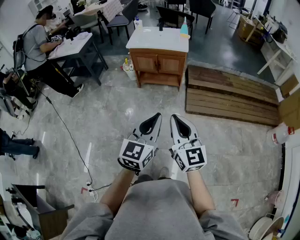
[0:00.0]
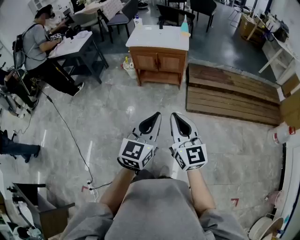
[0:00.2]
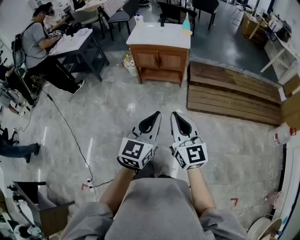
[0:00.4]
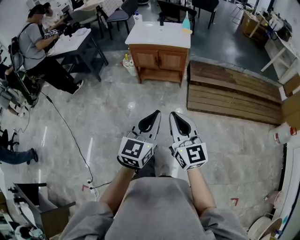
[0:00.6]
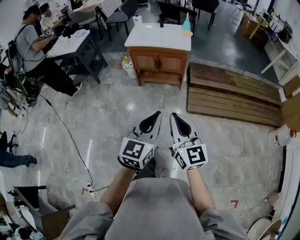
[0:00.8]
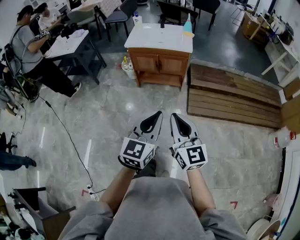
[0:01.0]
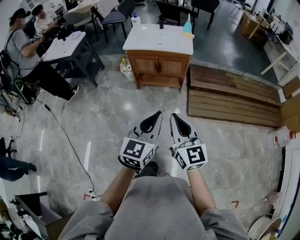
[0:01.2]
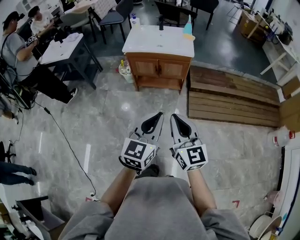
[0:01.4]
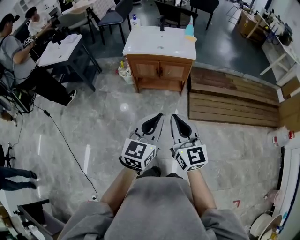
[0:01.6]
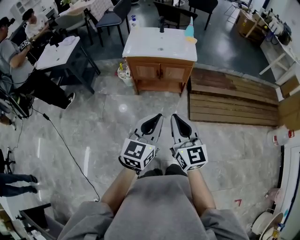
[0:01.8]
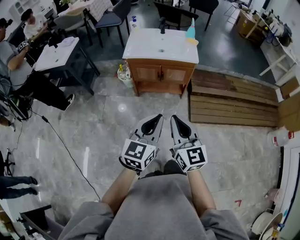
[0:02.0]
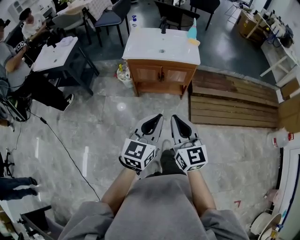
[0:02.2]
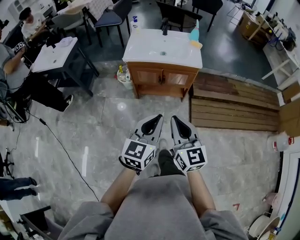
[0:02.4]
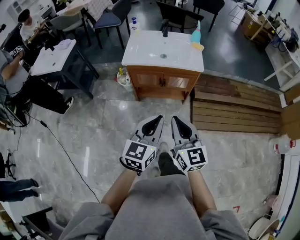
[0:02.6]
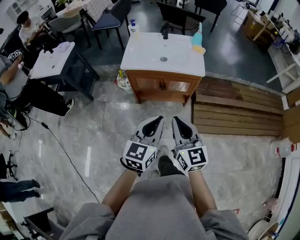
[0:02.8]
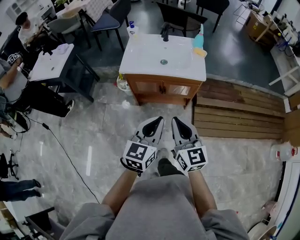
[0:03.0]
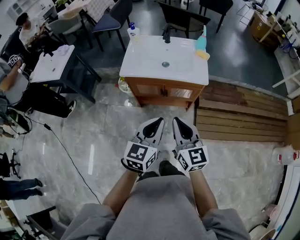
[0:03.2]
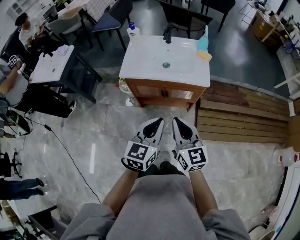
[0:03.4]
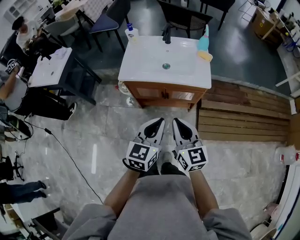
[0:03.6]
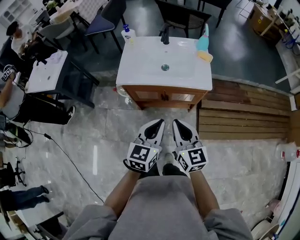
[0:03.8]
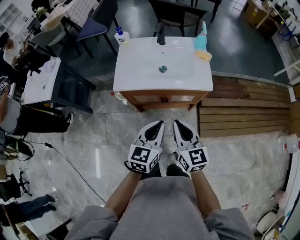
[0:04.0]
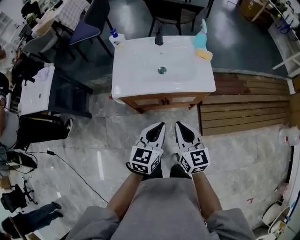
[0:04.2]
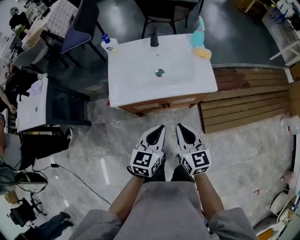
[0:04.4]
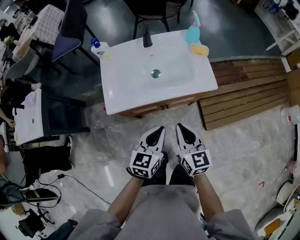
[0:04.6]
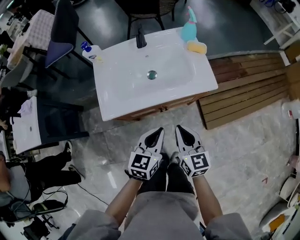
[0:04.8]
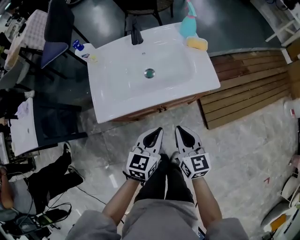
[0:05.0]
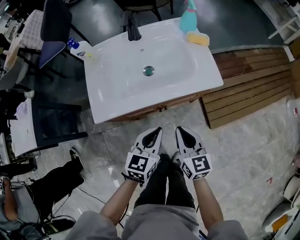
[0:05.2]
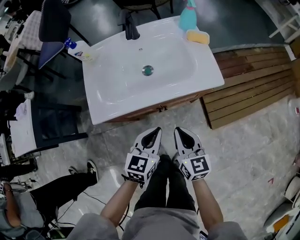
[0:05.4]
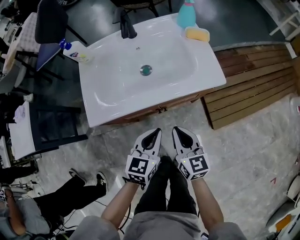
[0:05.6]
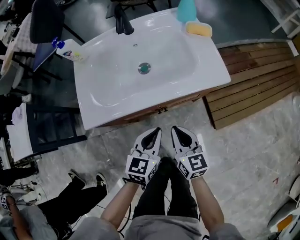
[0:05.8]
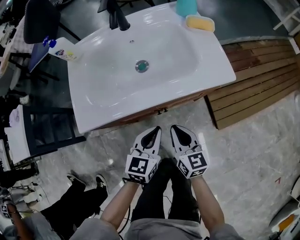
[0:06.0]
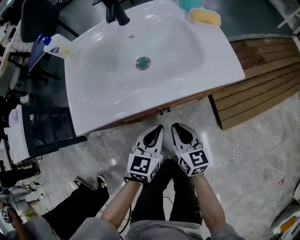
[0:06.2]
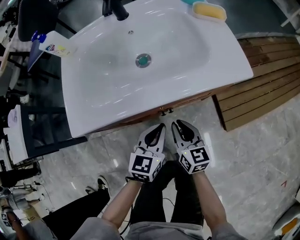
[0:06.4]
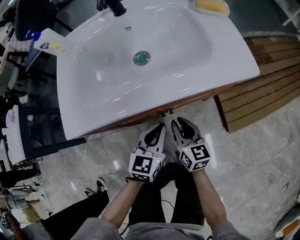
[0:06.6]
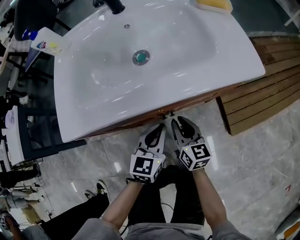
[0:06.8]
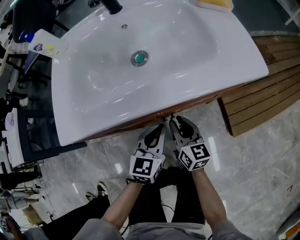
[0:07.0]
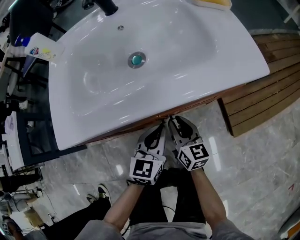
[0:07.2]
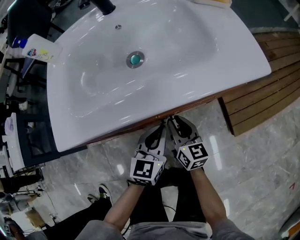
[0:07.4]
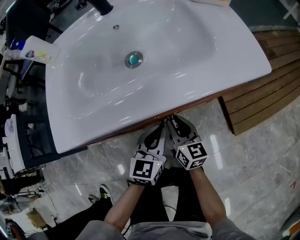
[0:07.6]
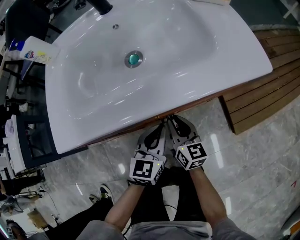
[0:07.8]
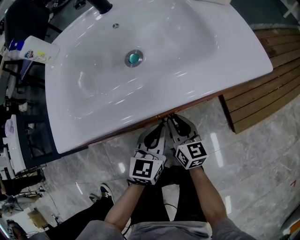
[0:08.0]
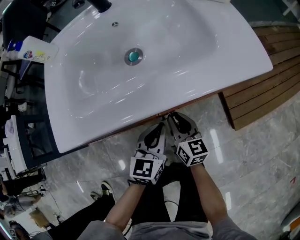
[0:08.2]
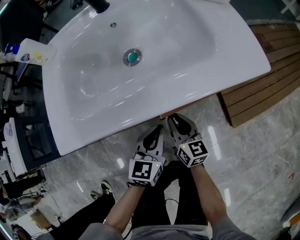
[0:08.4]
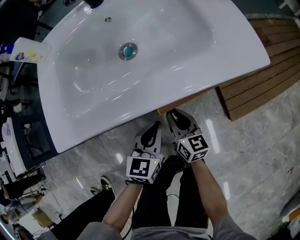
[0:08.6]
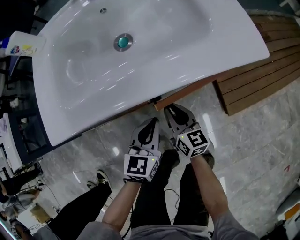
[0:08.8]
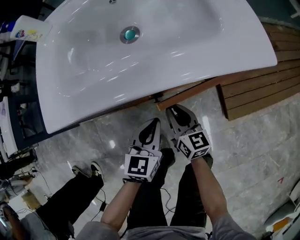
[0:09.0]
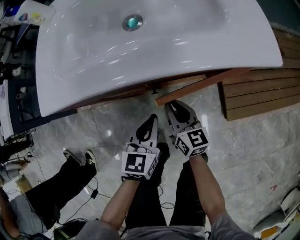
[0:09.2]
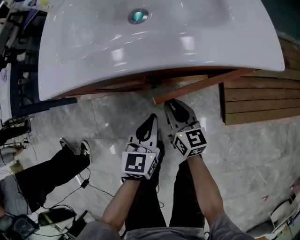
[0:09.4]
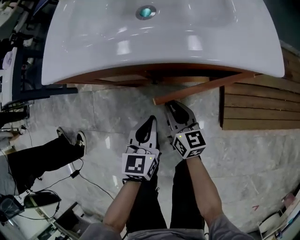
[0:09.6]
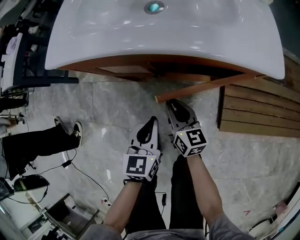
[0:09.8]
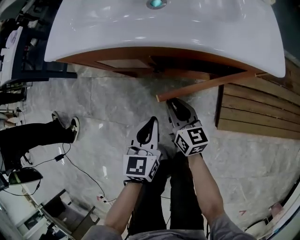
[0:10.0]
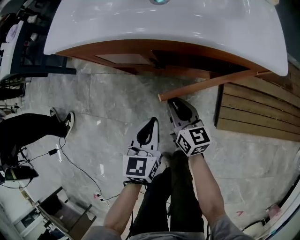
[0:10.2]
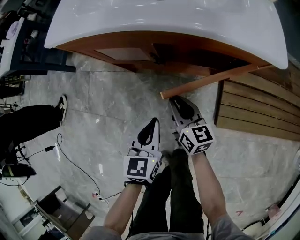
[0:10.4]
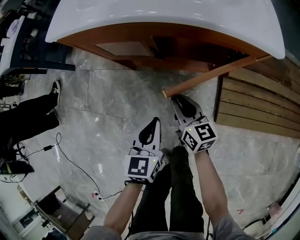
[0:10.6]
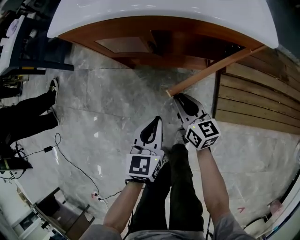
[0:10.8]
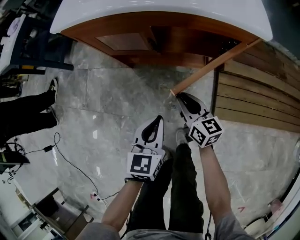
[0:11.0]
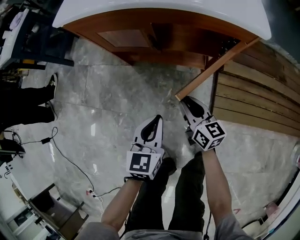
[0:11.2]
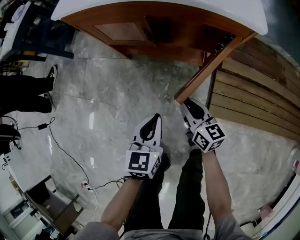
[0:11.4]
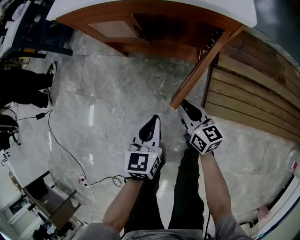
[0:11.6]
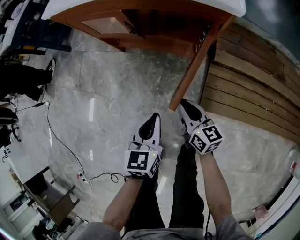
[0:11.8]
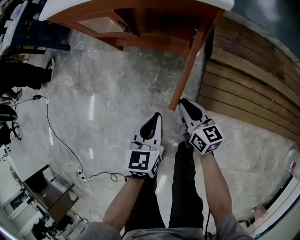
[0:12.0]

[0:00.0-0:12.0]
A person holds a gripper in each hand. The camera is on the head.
0:00.0 to 0:01.6: The grippers both shift forward by about 20 cm.
0:01.6 to 0:03.0: Both grippers travel together forward, some 25 cm.
0:03.0 to 0:04.4: The two grippers go roughly 25 cm forward and downward.
0:04.4 to 0:06.0: The grippers both shift downward by some 25 cm.
0:06.0 to 0:07.6: The left gripper is displaced downward by approximately 15 cm. Meanwhile the right gripper heads downward and forward, covering approximately 20 cm, and opens its fingers.
0:07.6 to 0:09.0: The grippers stay close to where they were, moving slightly.
0:09.0 to 0:10.4: The right gripper shifts by about 10 cm, and changes its angle by approximately 20 degrees. Meanwhile the left gripper ends up about 15 cm from where it was, and changes its angle by some 30 degrees.
0:10.4 to 0:12.0: Both grippers move backward and to the right, about 20 cm.

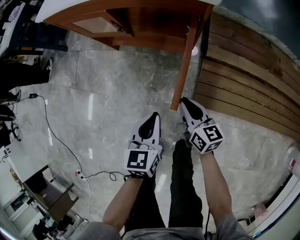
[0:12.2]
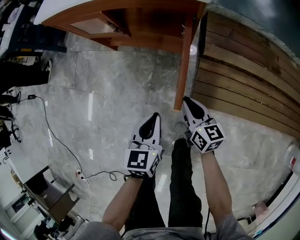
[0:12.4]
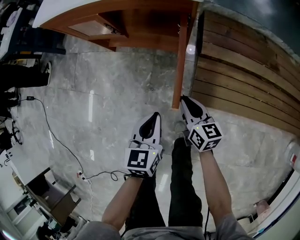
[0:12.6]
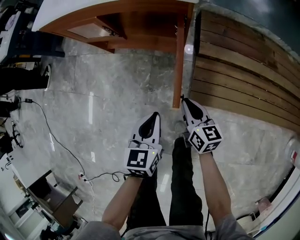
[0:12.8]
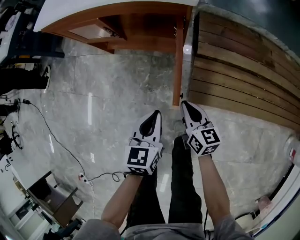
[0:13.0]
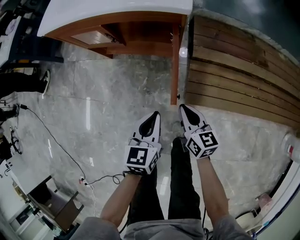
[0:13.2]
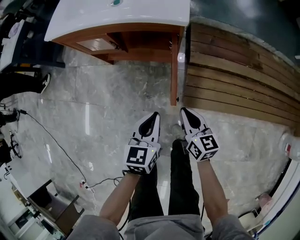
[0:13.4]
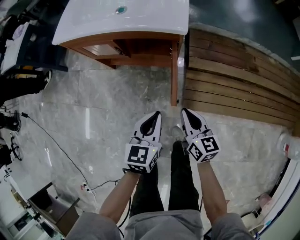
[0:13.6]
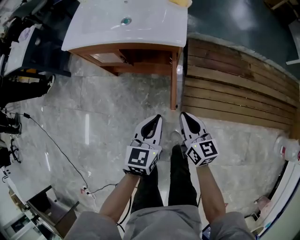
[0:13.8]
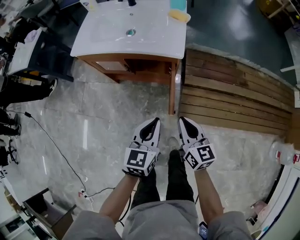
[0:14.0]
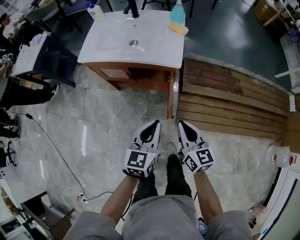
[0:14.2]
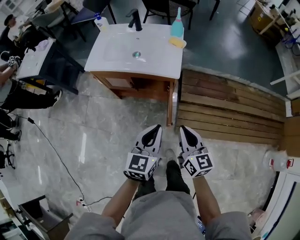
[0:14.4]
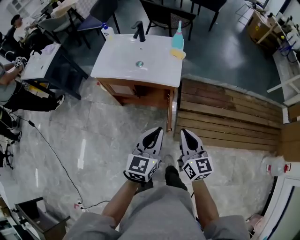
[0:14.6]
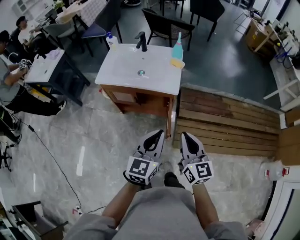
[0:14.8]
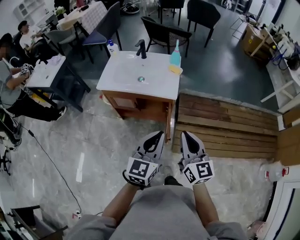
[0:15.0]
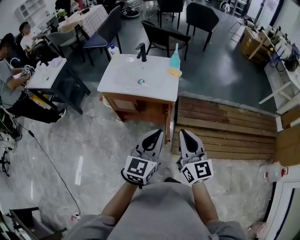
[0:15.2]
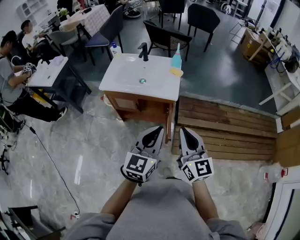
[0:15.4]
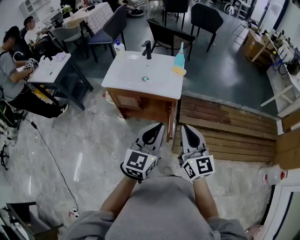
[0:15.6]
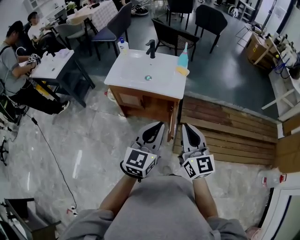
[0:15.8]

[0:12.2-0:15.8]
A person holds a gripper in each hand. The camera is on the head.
0:12.2 to 0:14.0: The two grippers go some 25 cm upward.
0:14.0 to 0:15.8: Both grippers move upward, some 30 cm. The left gripper turns by roughly 20 degrees. Meanwhile the right gripper rotates approximately 30 degrees.

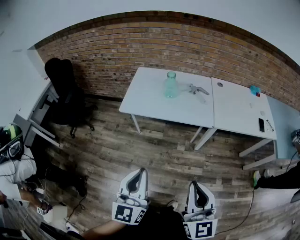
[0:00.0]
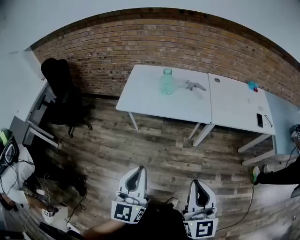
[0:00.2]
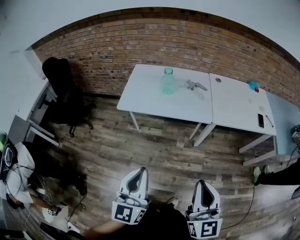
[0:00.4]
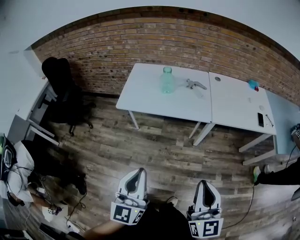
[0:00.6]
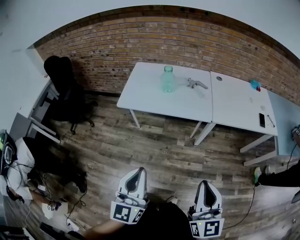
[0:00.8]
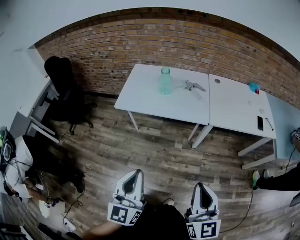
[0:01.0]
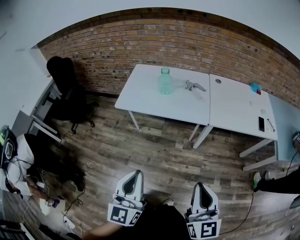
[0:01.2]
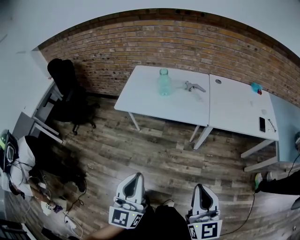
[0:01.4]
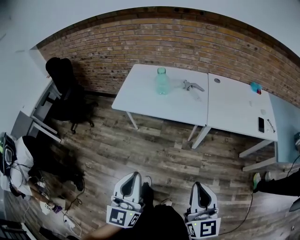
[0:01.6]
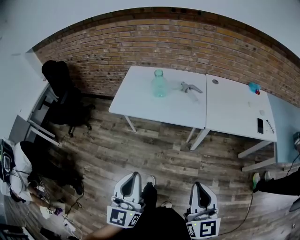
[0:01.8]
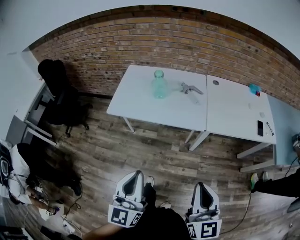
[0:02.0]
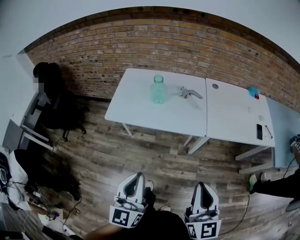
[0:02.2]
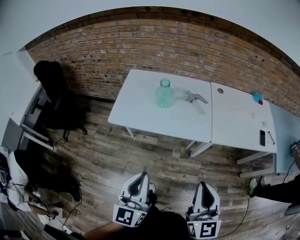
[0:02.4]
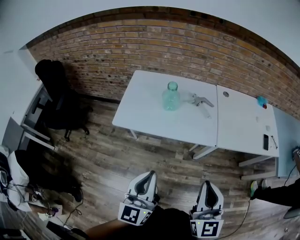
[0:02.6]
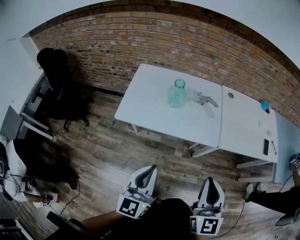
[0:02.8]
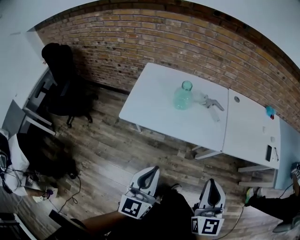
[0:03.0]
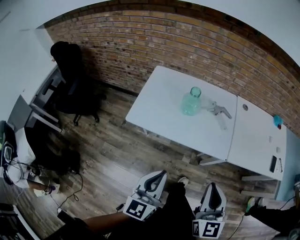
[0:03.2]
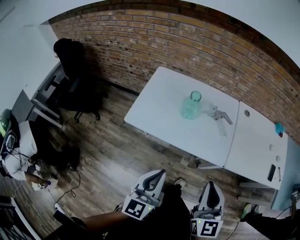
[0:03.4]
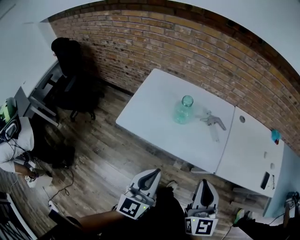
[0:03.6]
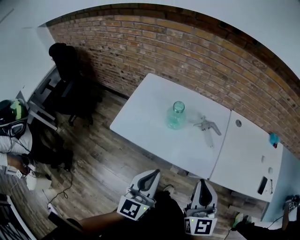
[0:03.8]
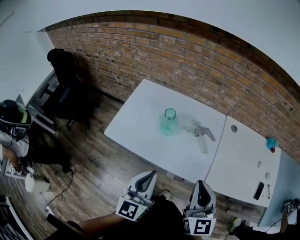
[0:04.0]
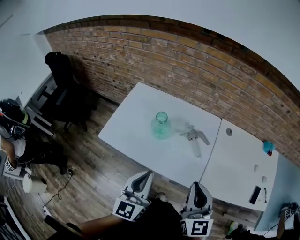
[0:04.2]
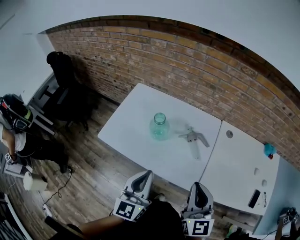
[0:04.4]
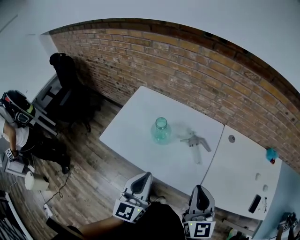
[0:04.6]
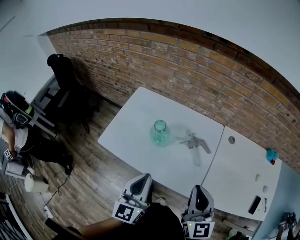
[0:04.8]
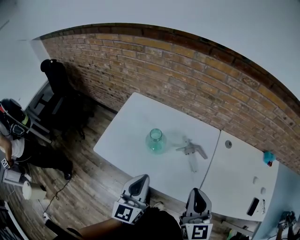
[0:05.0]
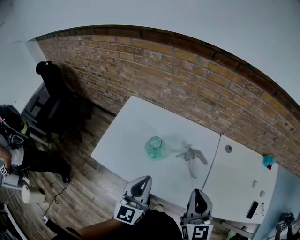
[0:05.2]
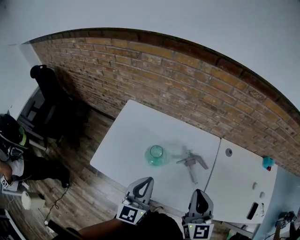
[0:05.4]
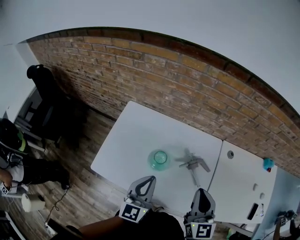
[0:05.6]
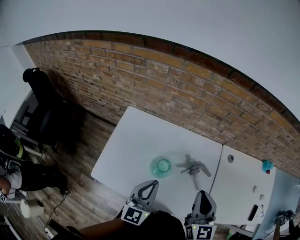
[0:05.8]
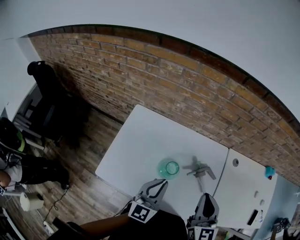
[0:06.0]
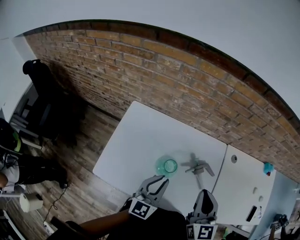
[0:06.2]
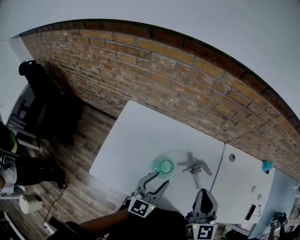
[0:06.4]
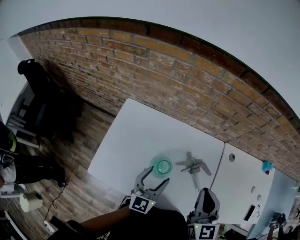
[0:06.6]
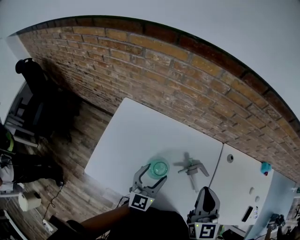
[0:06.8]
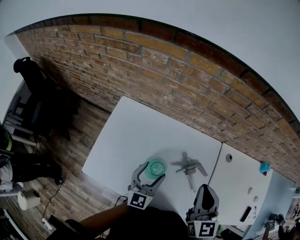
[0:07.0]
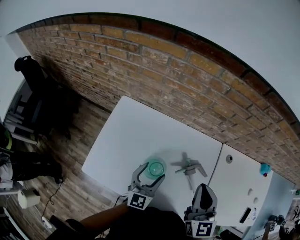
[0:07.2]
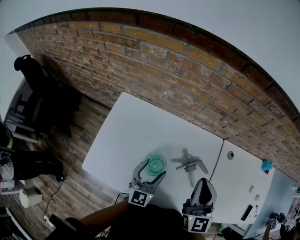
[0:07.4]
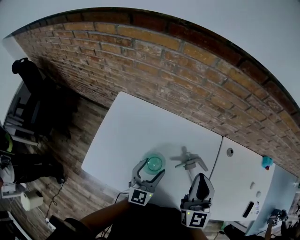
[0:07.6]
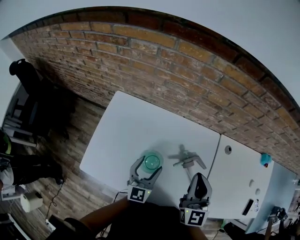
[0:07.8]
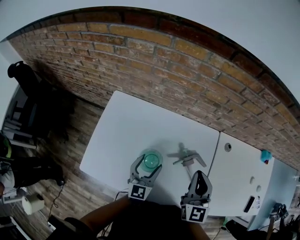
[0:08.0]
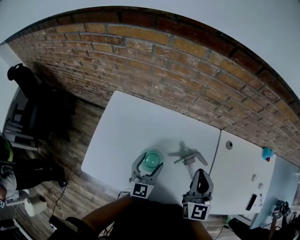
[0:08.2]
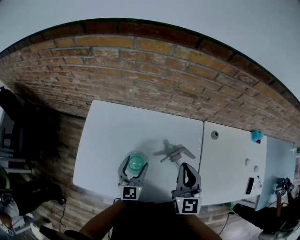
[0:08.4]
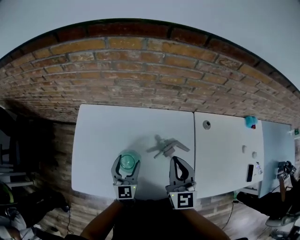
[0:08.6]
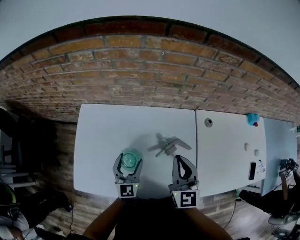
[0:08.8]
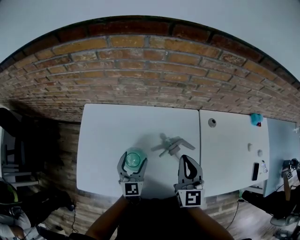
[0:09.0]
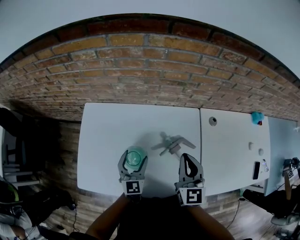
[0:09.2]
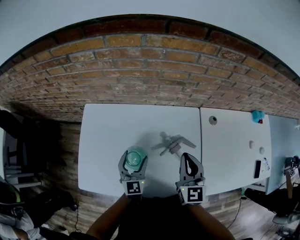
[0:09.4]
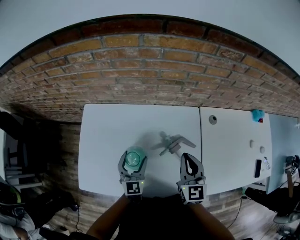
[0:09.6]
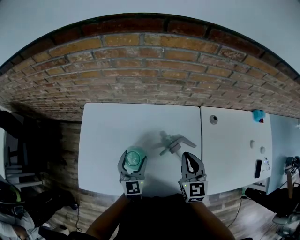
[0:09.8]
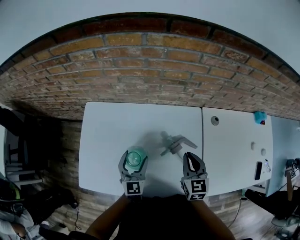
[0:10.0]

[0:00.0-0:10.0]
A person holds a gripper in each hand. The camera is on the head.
0:00.0 to 0:01.4: Both grippers travel together to the right, about 10 cm.
0:01.4 to 0:02.8: The right gripper travels forward and to the left by roughly 25 cm. The left gripper moves forward, about 20 cm.
0:02.8 to 0:04.2: Both grippers move forward and to the right, about 25 cm.
0:04.2 to 0:05.8: The grippers both shift forward by roughly 20 cm.
0:05.8 to 0:07.2: The right gripper travels forward by approximately 10 cm. The left gripper travels forward and downward by approximately 10 cm, and opens up.
0:07.2 to 0:08.6: The right gripper shifts about 5 cm downward.
0:08.6 to 0:10.0: The right gripper heads downward and to the right, covering roughly 10 cm.
